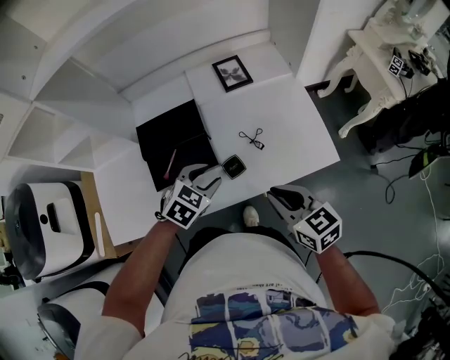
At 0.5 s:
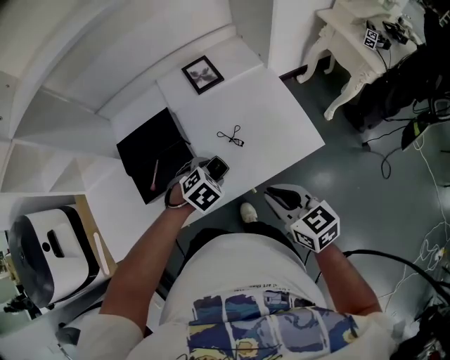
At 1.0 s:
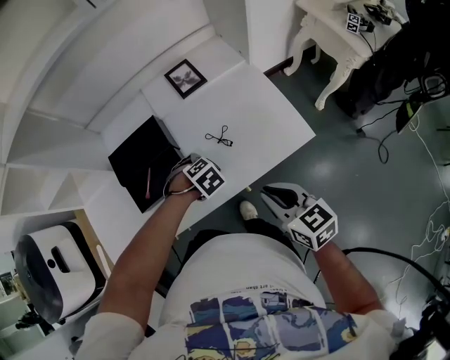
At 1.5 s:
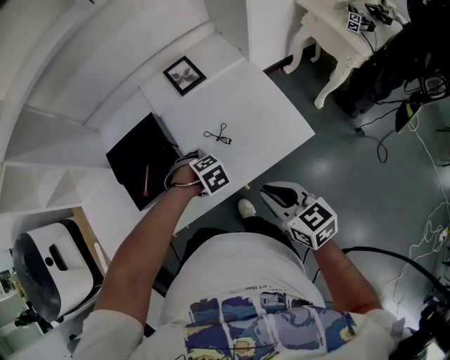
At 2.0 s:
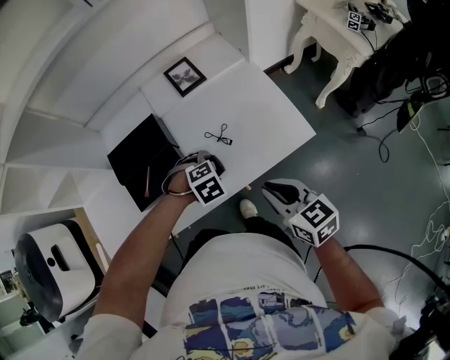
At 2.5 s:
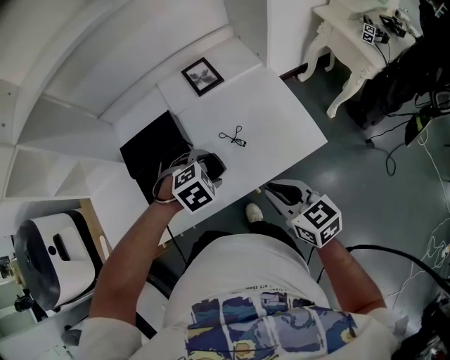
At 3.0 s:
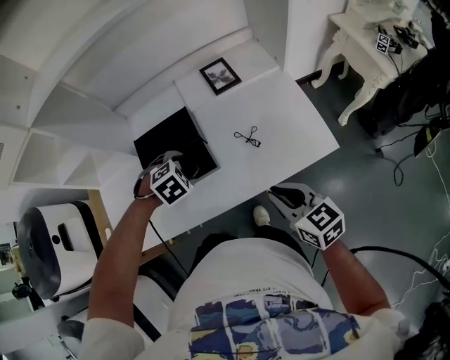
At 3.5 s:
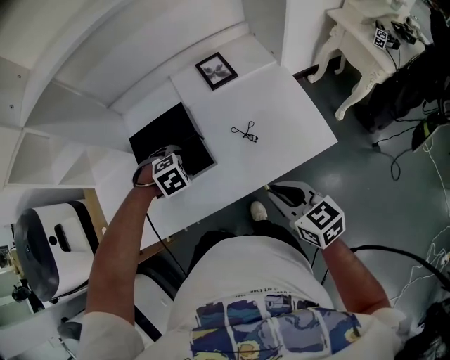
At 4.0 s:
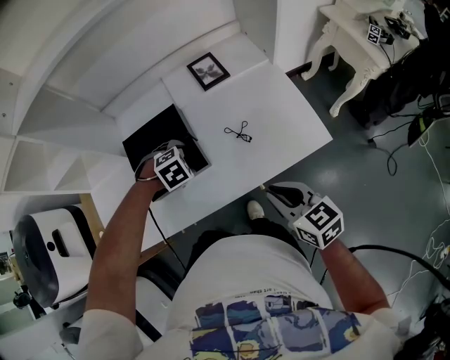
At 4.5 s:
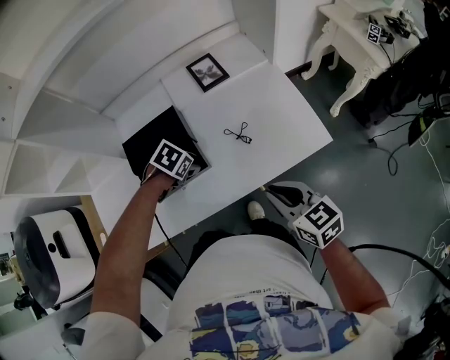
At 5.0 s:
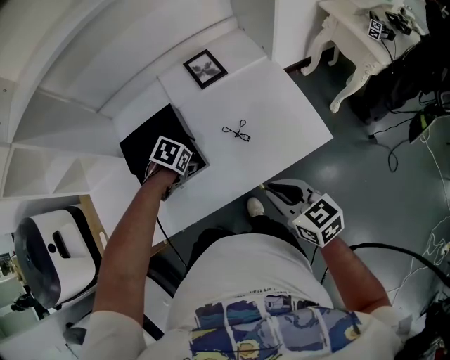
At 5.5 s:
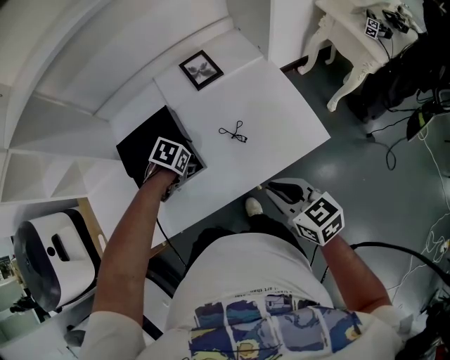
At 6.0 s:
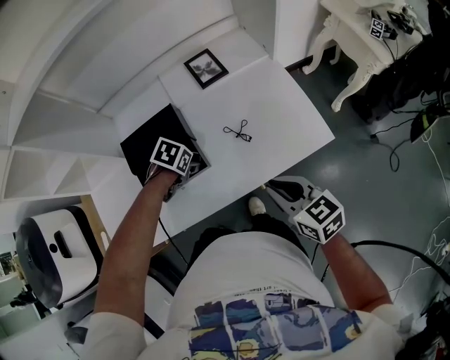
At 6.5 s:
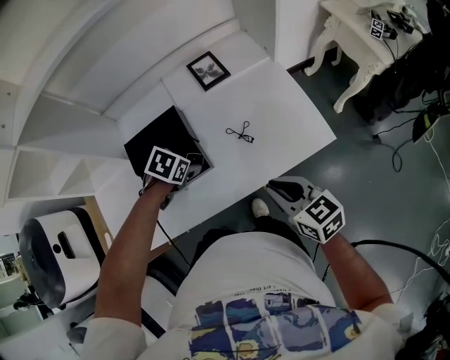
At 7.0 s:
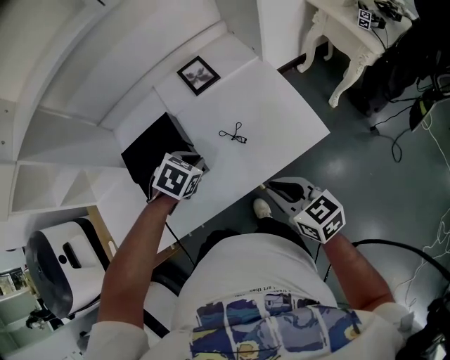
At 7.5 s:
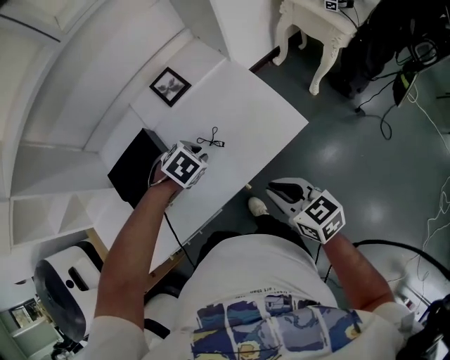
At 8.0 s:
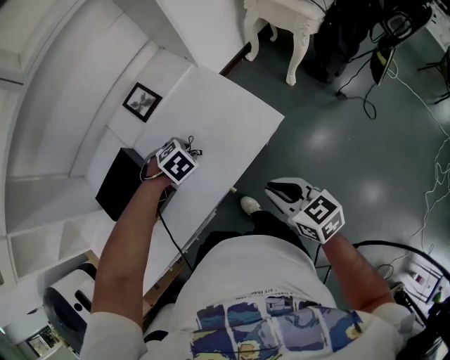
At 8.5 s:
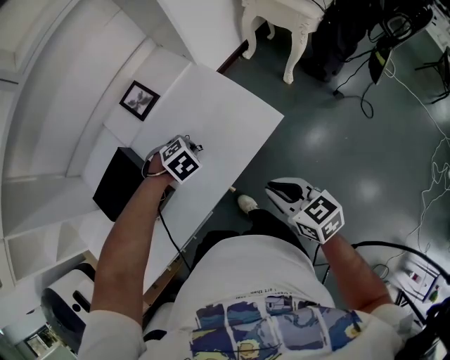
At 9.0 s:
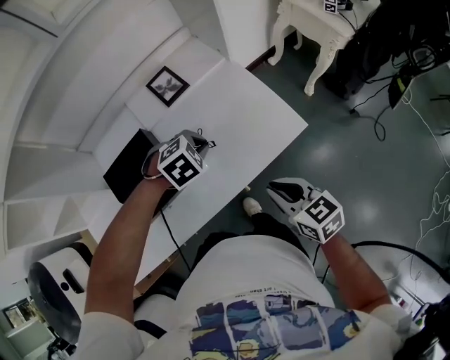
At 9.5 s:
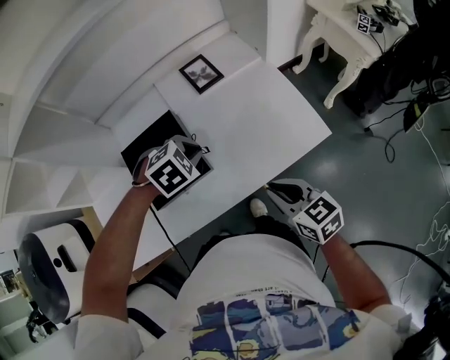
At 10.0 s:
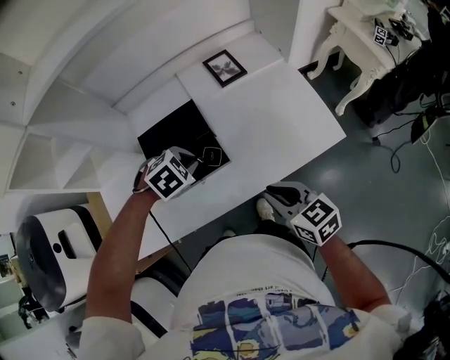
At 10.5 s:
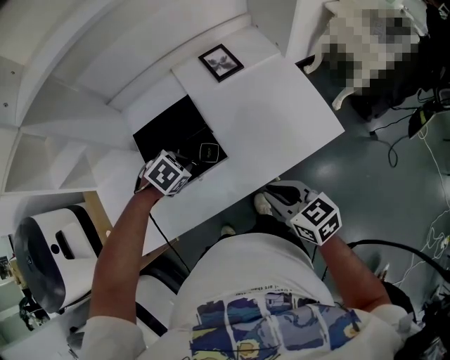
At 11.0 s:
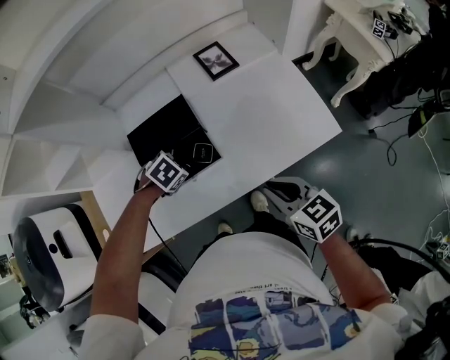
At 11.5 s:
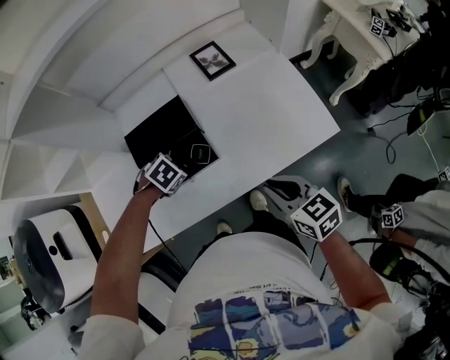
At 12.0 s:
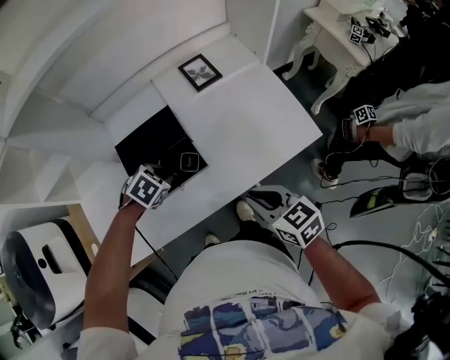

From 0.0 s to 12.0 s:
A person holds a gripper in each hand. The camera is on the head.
From 0.0 s to 2.0 s: The right gripper changes place by about 5 cm. The left gripper heads downward, covering about 10 cm, rotates some 40 degrees, and opens.
From 2.0 s to 4.0 s: The left gripper ends up approximately 15 cm from where it was.
From 4.0 s to 6.0 s: The left gripper rotates around the line of its fingers by some 40 degrees, counterclockwise from behind.
From 6.0 s to 8.0 s: The right gripper moves approximately 10 cm. Meanwhile the left gripper moves about 10 cm upward and comes back, twists about 50 degrees clockwise, seen from behind, and closes.
From 8.0 s to 10.0 s: The right gripper moves some 15 cm. The left gripper changes place by roughly 25 cm.
From 10.0 s to 12.0 s: The left gripper goes approximately 5 cm downward.

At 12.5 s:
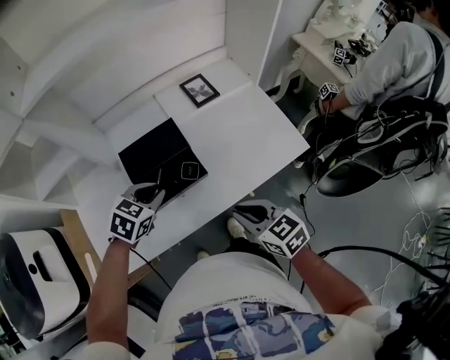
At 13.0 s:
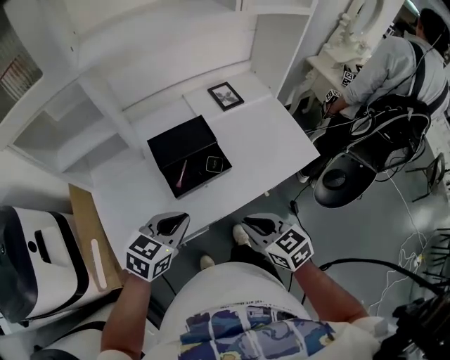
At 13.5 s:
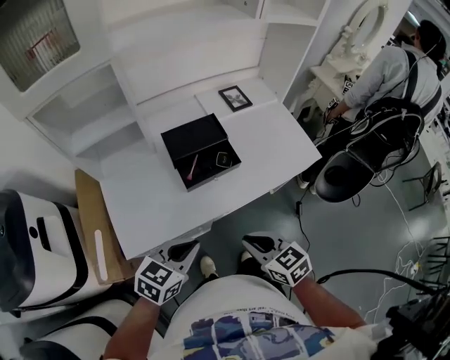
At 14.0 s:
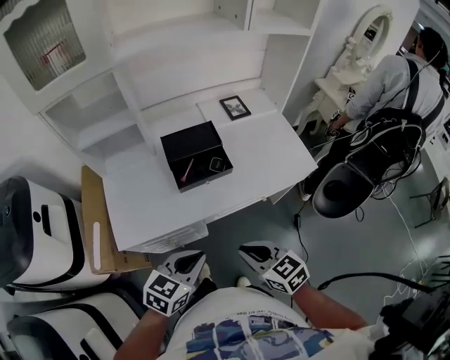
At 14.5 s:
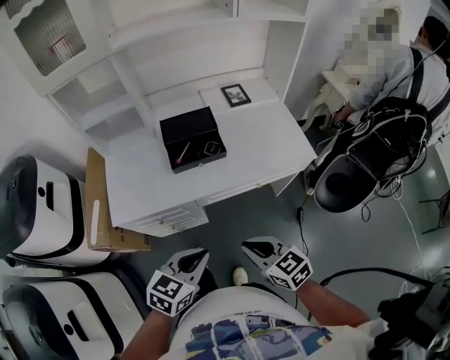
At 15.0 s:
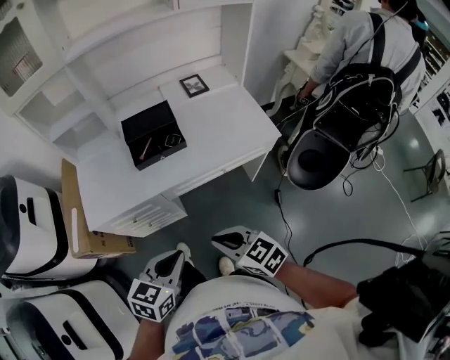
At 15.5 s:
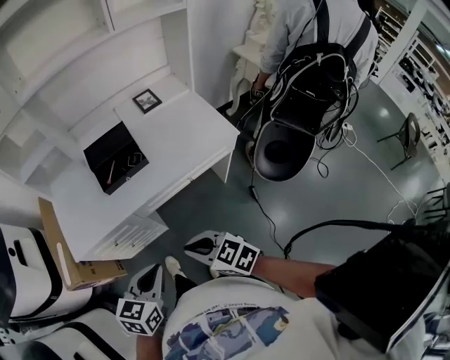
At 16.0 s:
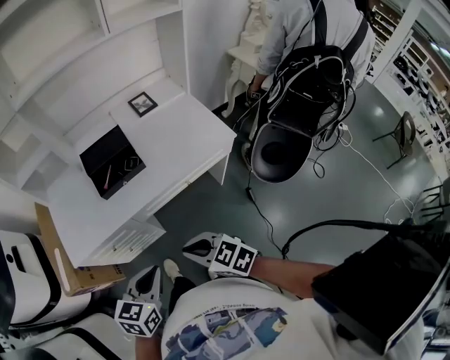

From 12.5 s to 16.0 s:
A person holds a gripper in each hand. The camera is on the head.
From 12.5 s to 14.5 s: The right gripper moves backward, roughly 20 cm. Meanwhile the left gripper shifts some 35 cm backward, and turns by about 30 degrees.
From 14.5 s to 16.0 s: The grippers stay close to where they were, moving slightly.

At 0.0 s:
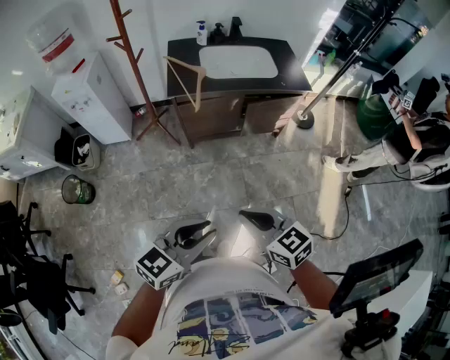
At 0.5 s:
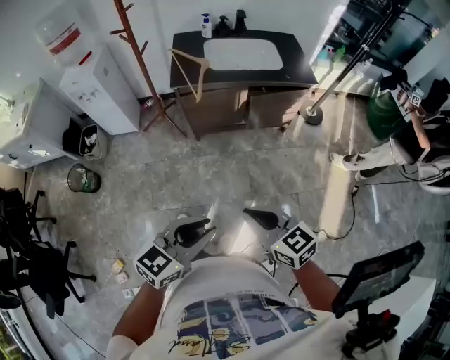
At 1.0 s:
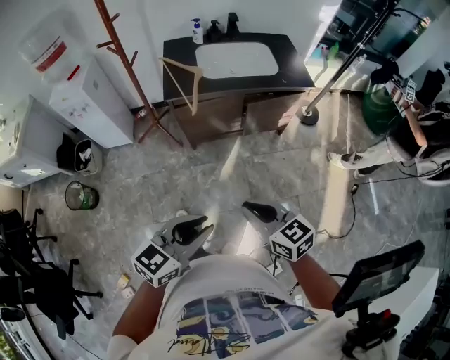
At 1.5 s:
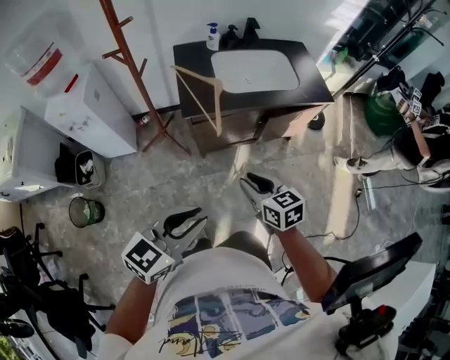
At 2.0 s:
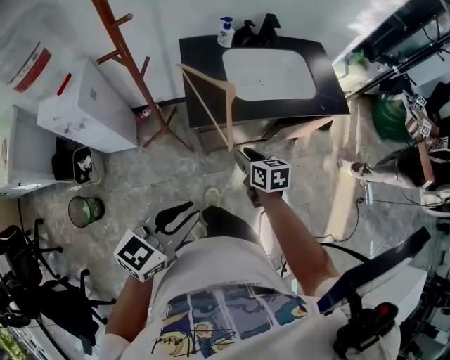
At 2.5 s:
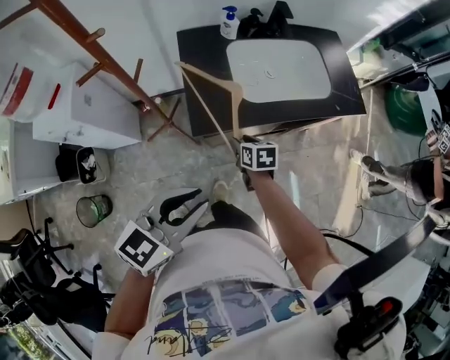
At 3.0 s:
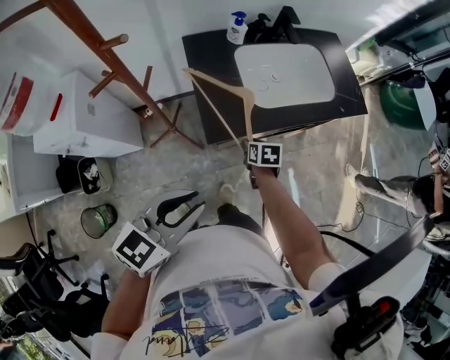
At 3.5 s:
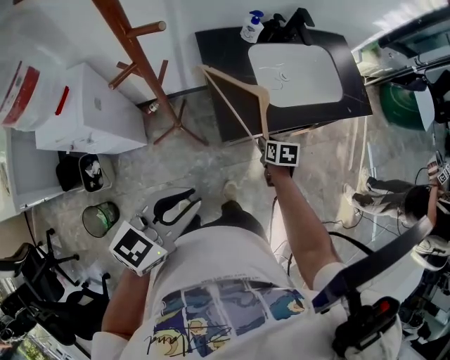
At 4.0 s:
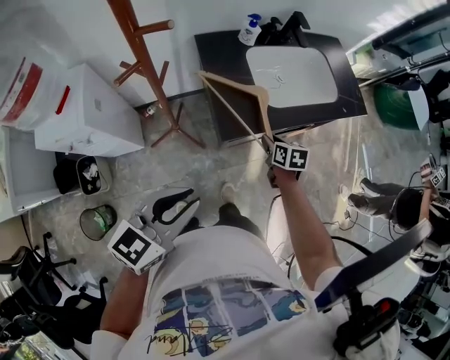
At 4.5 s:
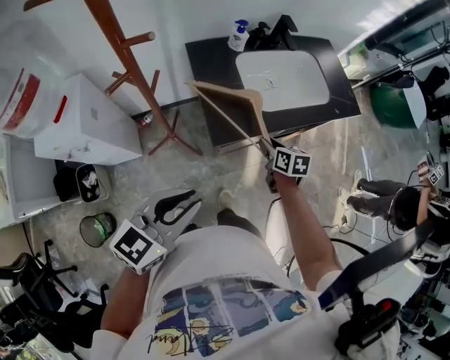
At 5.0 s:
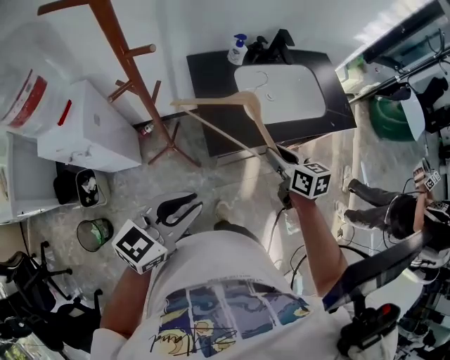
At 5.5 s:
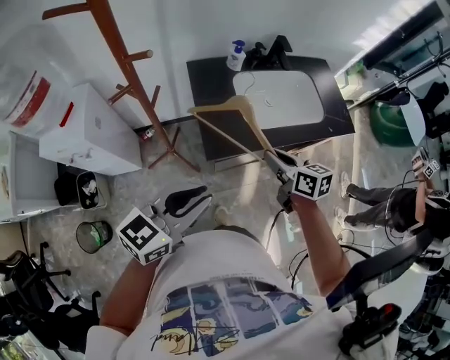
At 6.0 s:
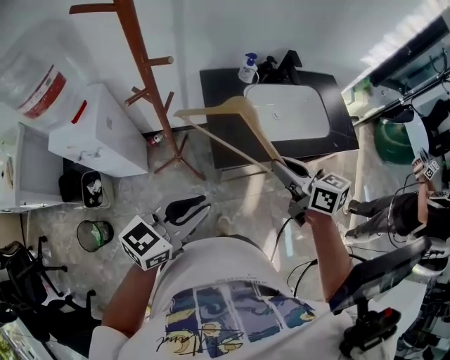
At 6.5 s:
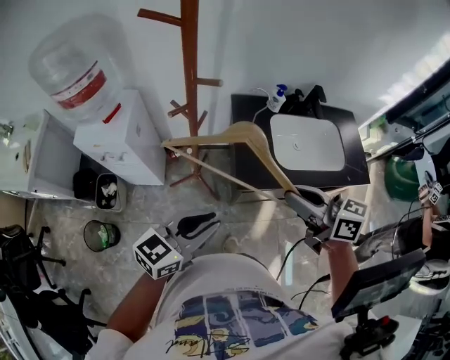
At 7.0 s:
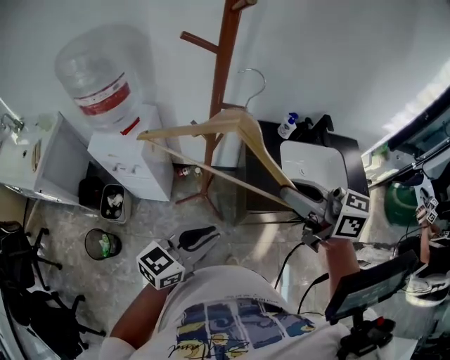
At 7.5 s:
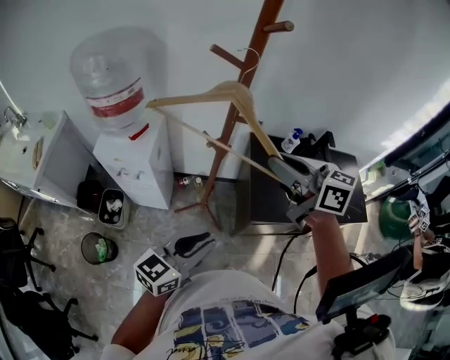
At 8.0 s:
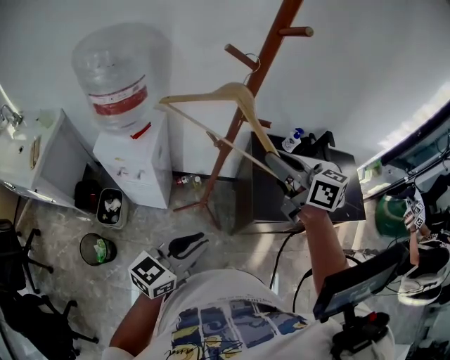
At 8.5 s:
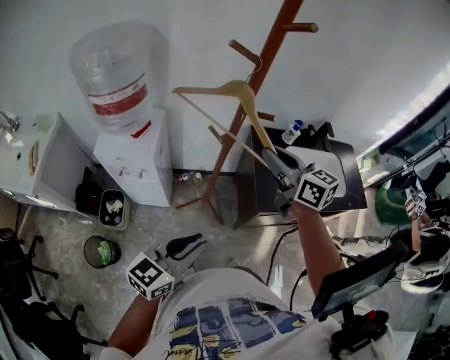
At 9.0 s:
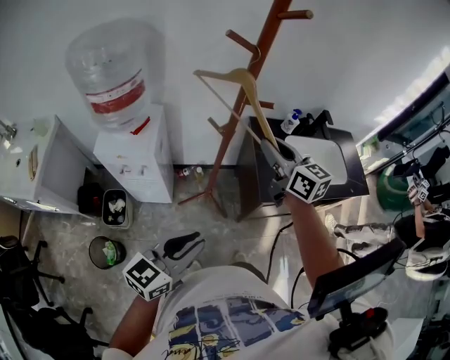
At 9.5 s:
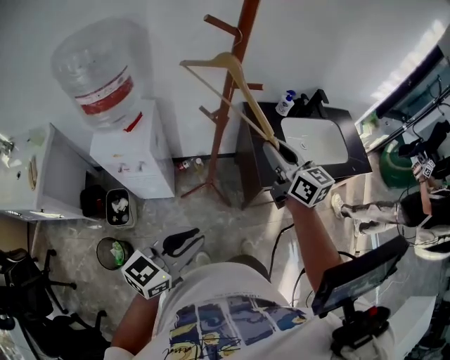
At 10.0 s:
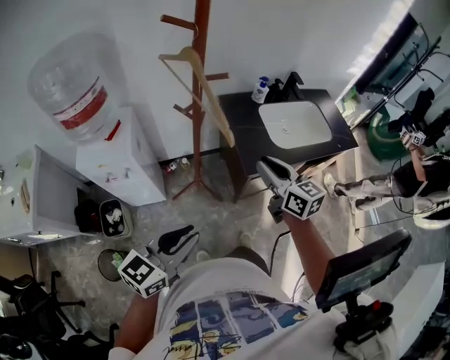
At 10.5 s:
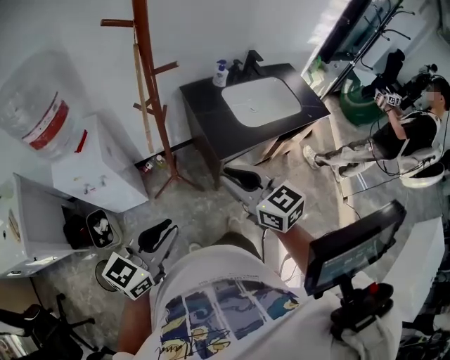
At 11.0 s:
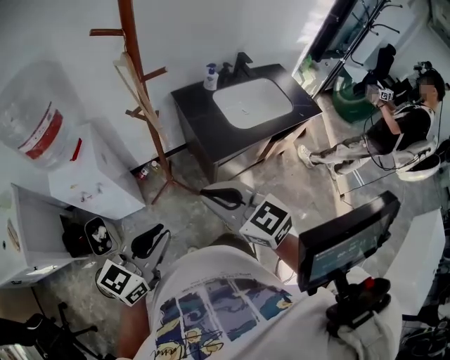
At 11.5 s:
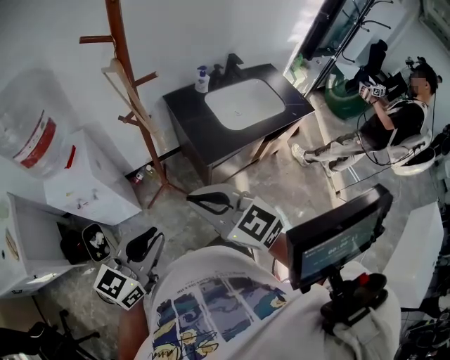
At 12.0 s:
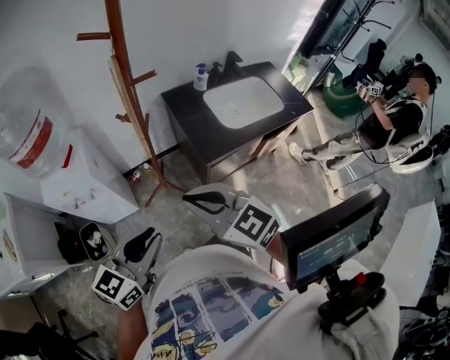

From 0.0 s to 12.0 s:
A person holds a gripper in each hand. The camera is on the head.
From 0.0 s to 2.0 s: The right gripper shifts some 40 cm forward, turns by about 30 degrees, and opens its fingers. The left gripper shifts some 35 cm forward and to the left.
From 2.0 s to 4.0 s: The left gripper goes approximately 20 cm to the left and forward, while the right gripper is displaced forward and downward by approximately 10 cm.
From 4.0 s to 6.0 s: The left gripper shifts approximately 5 cm to the right. The right gripper moves upward, some 25 cm, and changes its angle by some 40 degrees.
From 6.0 s to 8.0 s: The right gripper goes some 30 cm to the left, upward and forward, and changes its angle by approximately 20 degrees, while the left gripper travels to the left by about 15 cm.
From 8.0 s to 10.0 s: The right gripper travels downward, backward and to the right by approximately 20 cm, and swivels about 30 degrees, while the left gripper is displaced backward by about 5 cm.
From 10.0 s to 12.0 s: The right gripper shifts roughly 15 cm backward and to the left, and turns by approximately 30 degrees.
